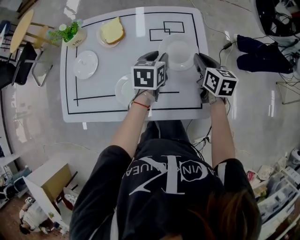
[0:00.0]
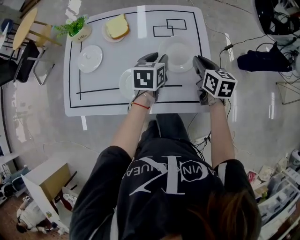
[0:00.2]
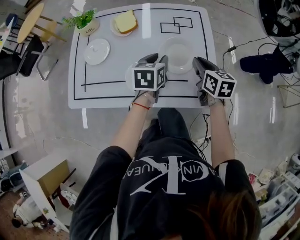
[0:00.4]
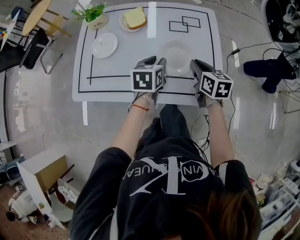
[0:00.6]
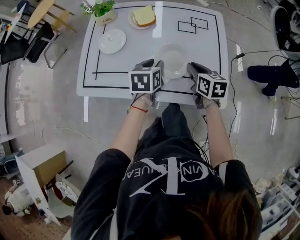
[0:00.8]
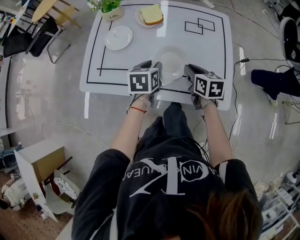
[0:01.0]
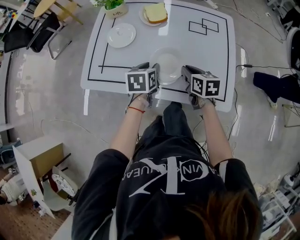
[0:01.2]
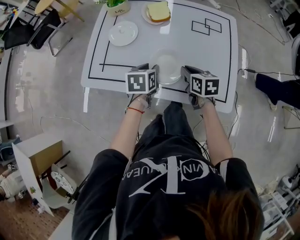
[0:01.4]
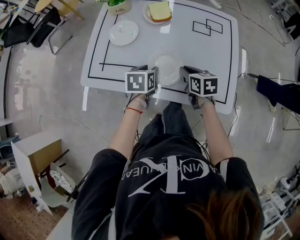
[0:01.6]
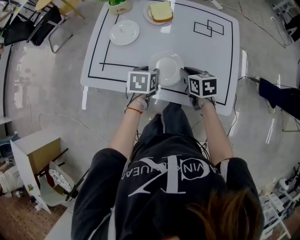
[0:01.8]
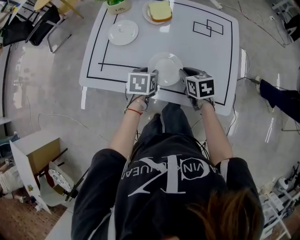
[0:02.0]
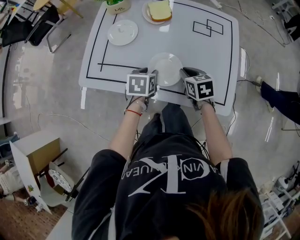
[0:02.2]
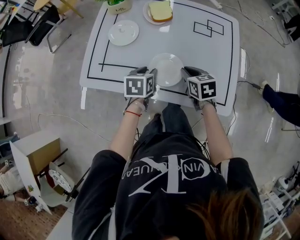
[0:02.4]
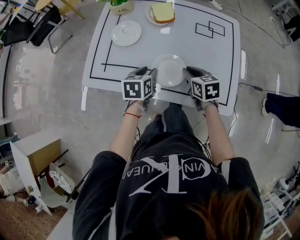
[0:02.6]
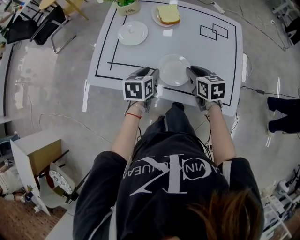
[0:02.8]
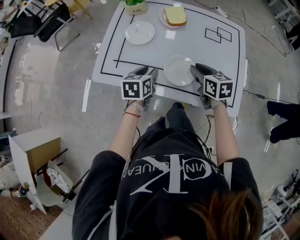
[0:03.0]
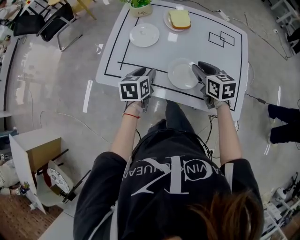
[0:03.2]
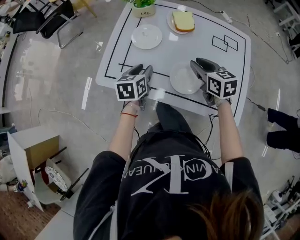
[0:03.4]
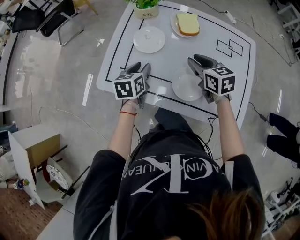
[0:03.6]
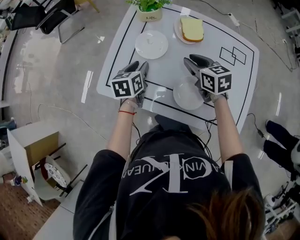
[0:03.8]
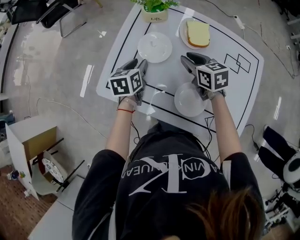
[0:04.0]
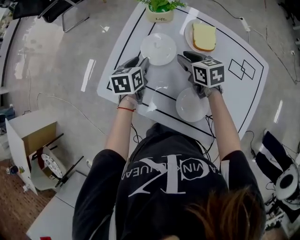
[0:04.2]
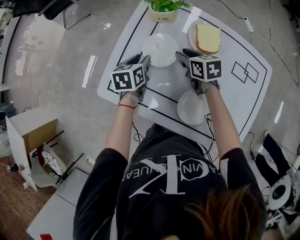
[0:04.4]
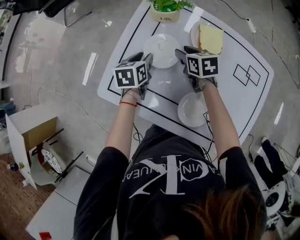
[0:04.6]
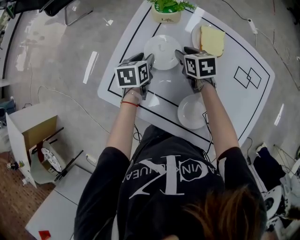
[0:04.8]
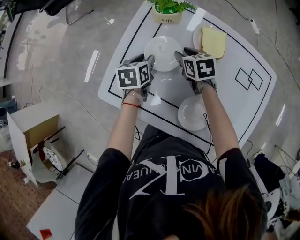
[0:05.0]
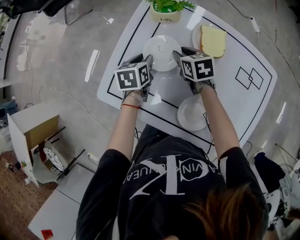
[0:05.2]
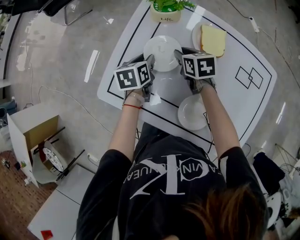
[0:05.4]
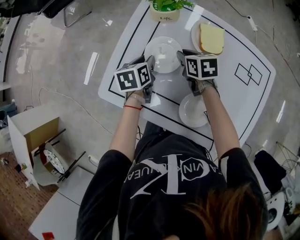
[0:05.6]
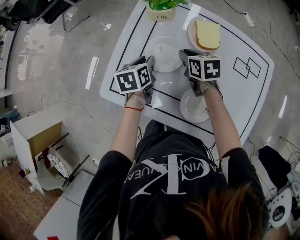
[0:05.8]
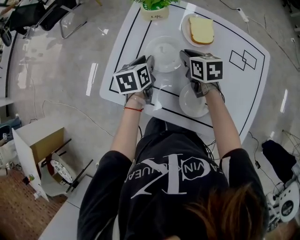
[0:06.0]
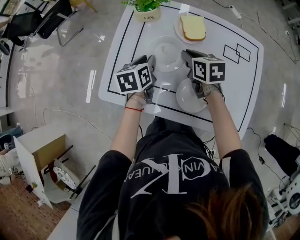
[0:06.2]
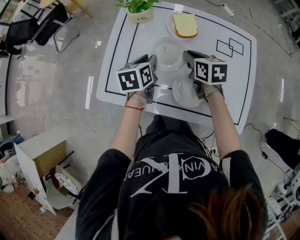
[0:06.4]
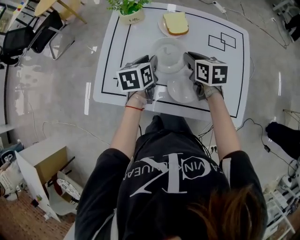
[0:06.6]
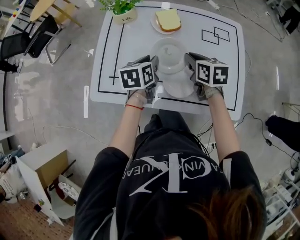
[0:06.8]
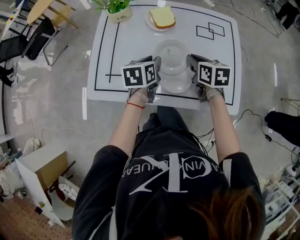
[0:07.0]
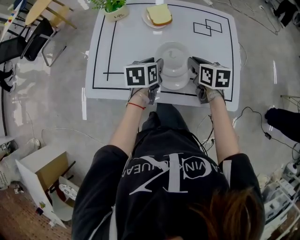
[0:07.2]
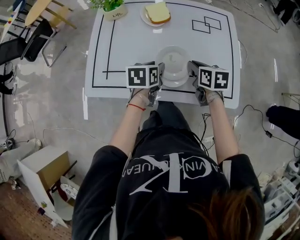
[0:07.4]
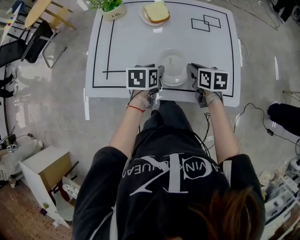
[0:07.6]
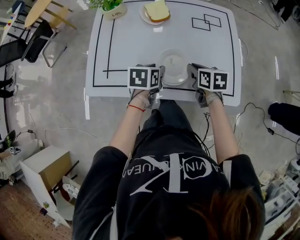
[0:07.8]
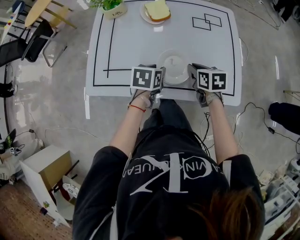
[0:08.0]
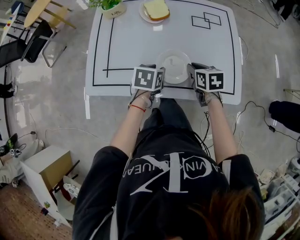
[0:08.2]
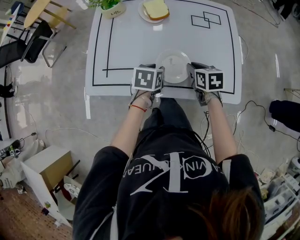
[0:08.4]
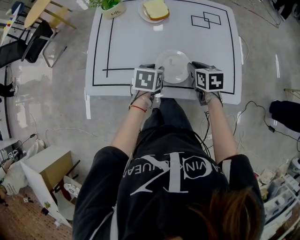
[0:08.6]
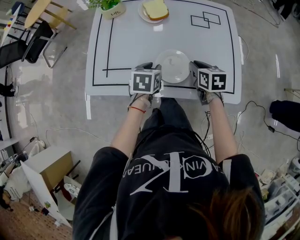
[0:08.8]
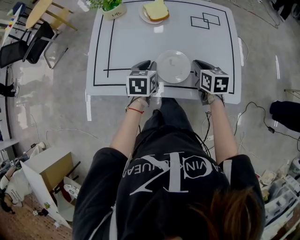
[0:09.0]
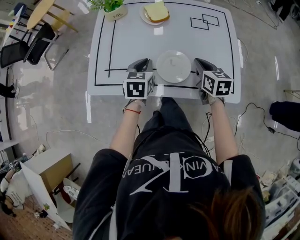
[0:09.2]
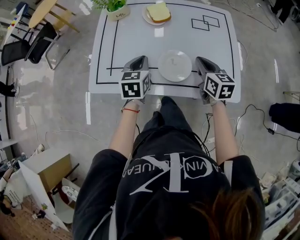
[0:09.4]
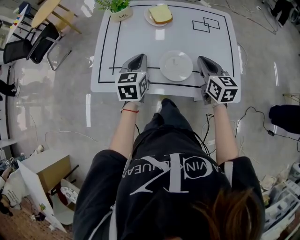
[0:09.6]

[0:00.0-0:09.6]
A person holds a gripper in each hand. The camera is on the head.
0:00.0 to 0:01.6: The grippers both shift to the left and backward by about 25 cm. The right gripper turns by approximately 30 degrees.
0:01.6 to 0:03.2: The right gripper is displaced upward by about 10 cm, while the left gripper moves to the left, about 10 cm.
0:03.2 to 0:04.8: The right gripper heads forward and to the left, covering roughly 30 cm. The left gripper shifts about 20 cm forward.
0:04.8 to 0:06.4: The left gripper shifts roughly 15 cm upward, backward and to the right. The right gripper goes some 15 cm backward, upward and to the right, and closes up.
0:06.4 to 0:08.0: The left gripper travels to the right, backward and downward by some 20 cm, and rotates approximately 30 degrees; the right gripper heads backward, to the right and downward, covering roughly 20 cm.
0:08.0 to 0:09.6: The right gripper moves upward, roughly 10 cm, and changes its angle by some 30 degrees; the left gripper moves upward and to the left, some 10 cm, turns by about 30 degrees, and closes.

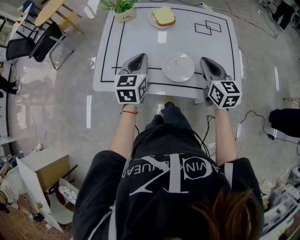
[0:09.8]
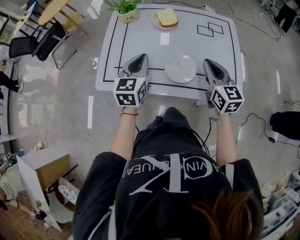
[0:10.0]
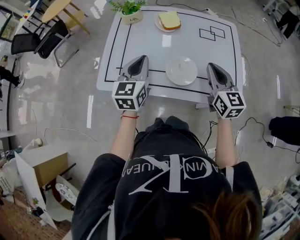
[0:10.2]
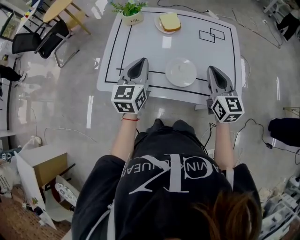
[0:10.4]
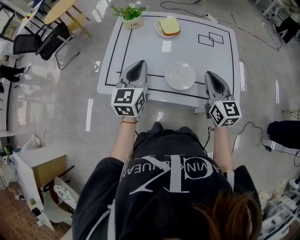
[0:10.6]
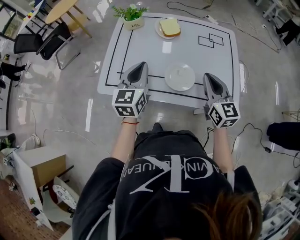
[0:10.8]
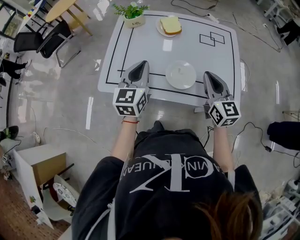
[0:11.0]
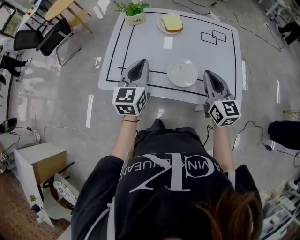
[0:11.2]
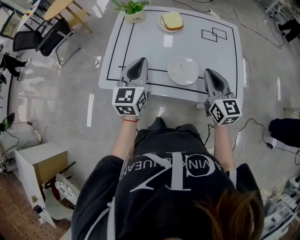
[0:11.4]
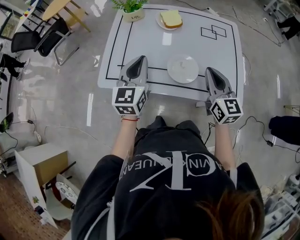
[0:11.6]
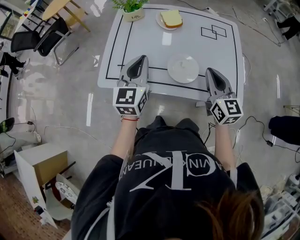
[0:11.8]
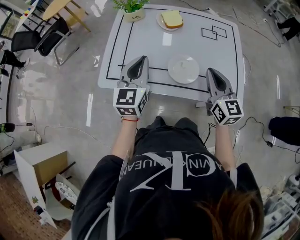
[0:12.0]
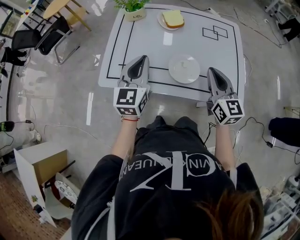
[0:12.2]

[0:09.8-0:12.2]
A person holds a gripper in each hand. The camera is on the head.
0:09.8 to 0:11.0: The left gripper shifts about 5 cm upward.
0:11.0 to 0:12.2: The grippers make only small movements.

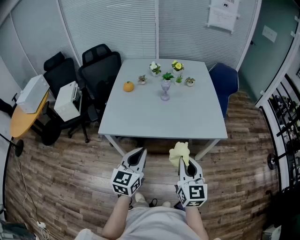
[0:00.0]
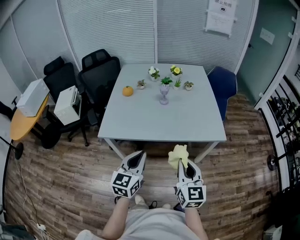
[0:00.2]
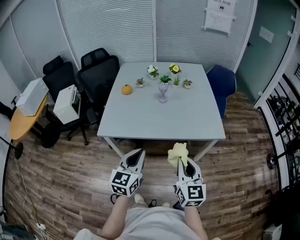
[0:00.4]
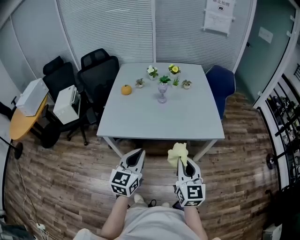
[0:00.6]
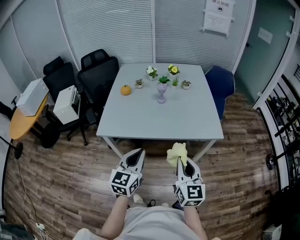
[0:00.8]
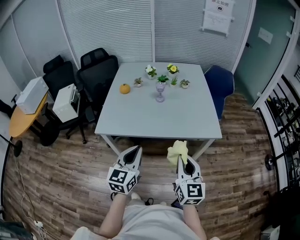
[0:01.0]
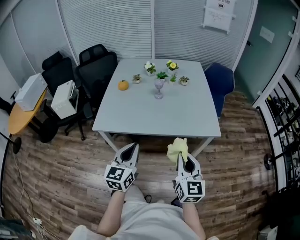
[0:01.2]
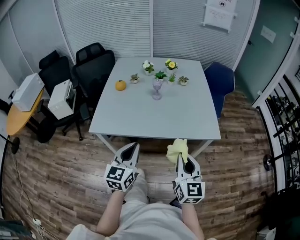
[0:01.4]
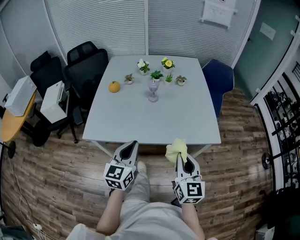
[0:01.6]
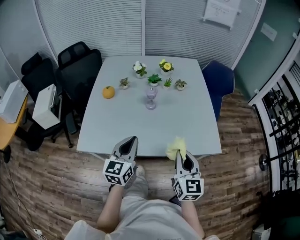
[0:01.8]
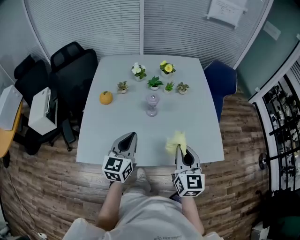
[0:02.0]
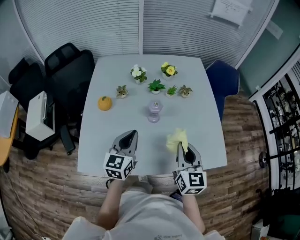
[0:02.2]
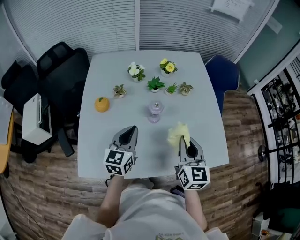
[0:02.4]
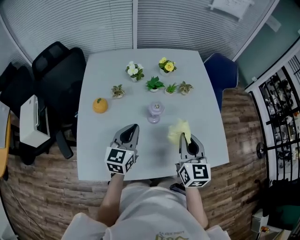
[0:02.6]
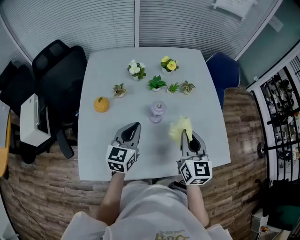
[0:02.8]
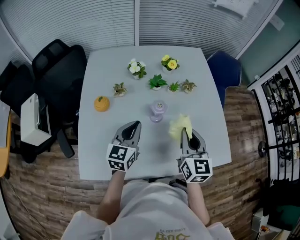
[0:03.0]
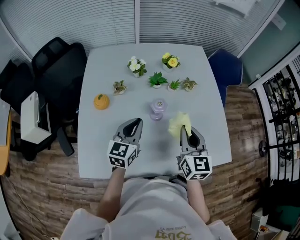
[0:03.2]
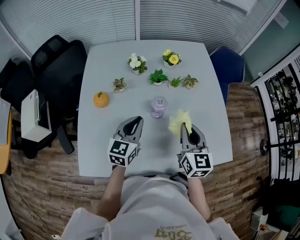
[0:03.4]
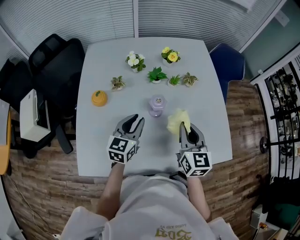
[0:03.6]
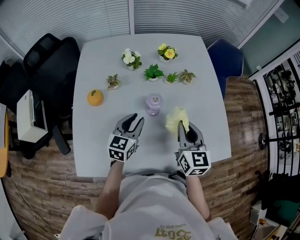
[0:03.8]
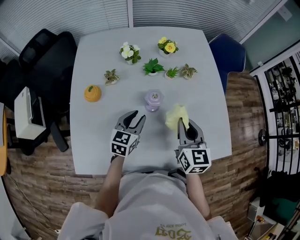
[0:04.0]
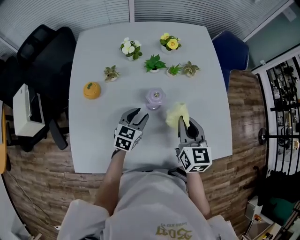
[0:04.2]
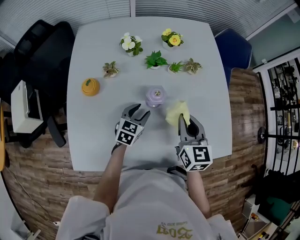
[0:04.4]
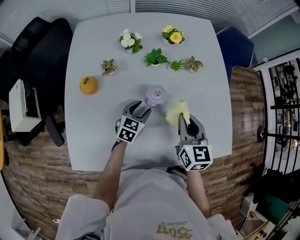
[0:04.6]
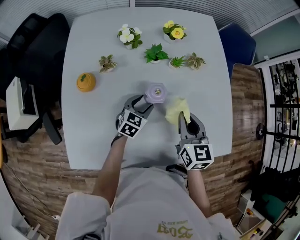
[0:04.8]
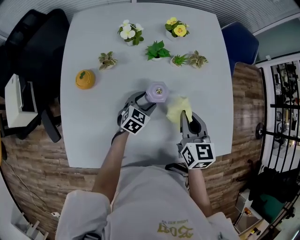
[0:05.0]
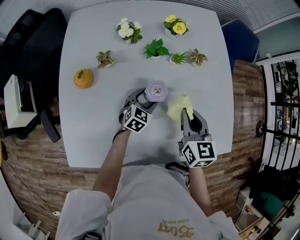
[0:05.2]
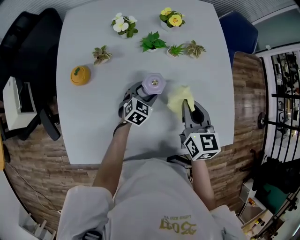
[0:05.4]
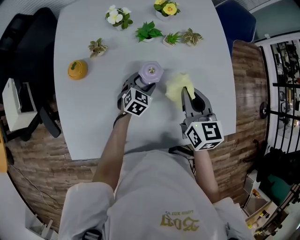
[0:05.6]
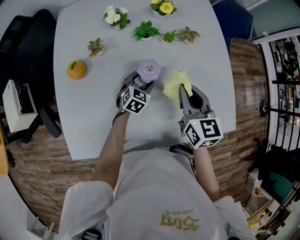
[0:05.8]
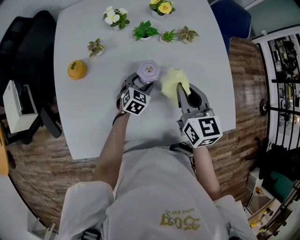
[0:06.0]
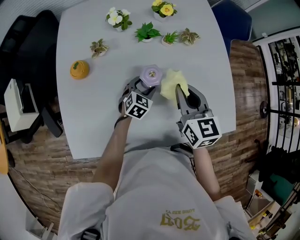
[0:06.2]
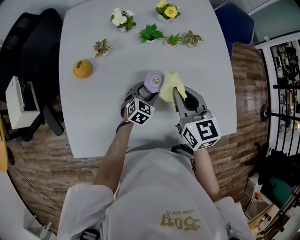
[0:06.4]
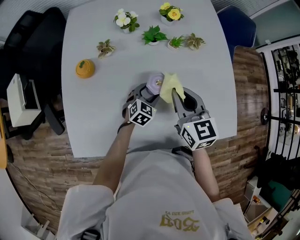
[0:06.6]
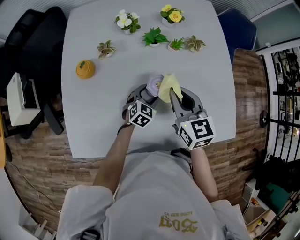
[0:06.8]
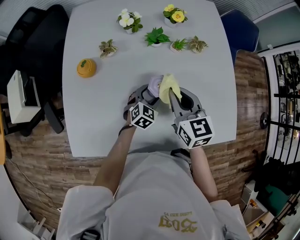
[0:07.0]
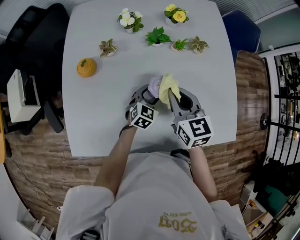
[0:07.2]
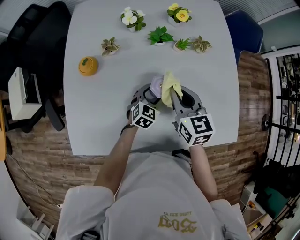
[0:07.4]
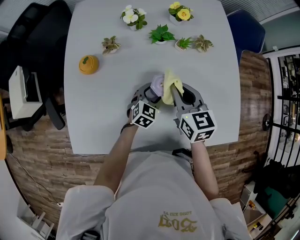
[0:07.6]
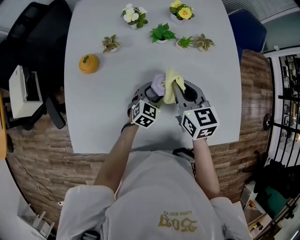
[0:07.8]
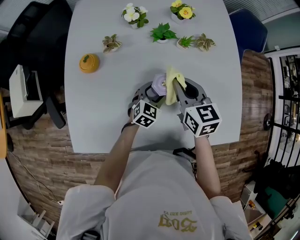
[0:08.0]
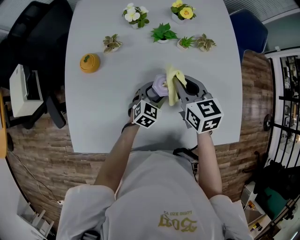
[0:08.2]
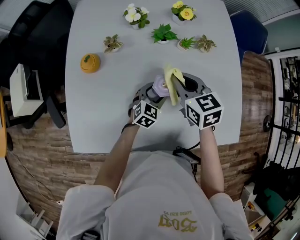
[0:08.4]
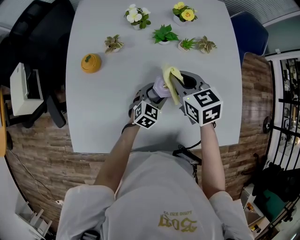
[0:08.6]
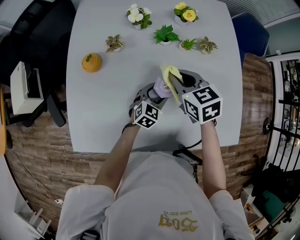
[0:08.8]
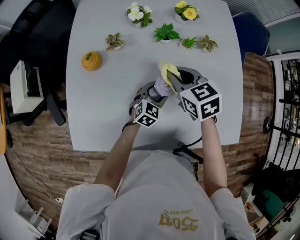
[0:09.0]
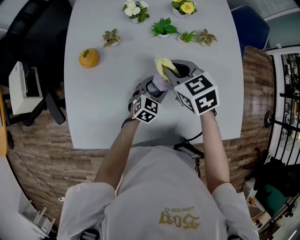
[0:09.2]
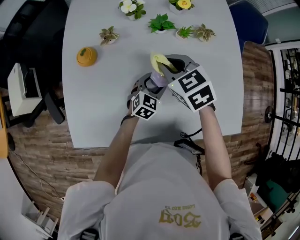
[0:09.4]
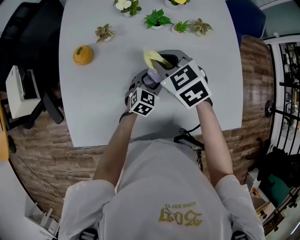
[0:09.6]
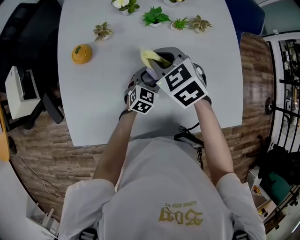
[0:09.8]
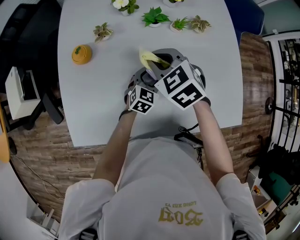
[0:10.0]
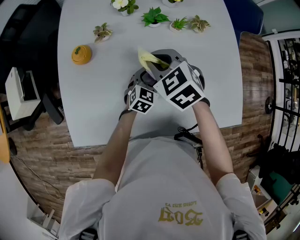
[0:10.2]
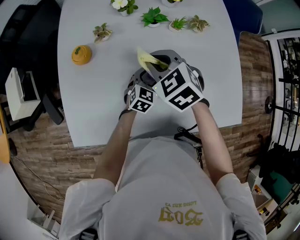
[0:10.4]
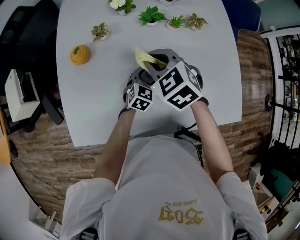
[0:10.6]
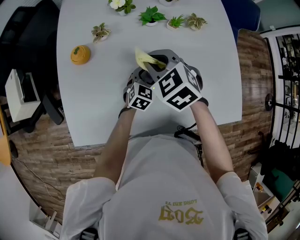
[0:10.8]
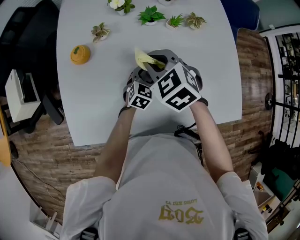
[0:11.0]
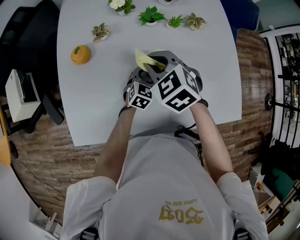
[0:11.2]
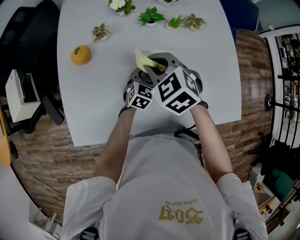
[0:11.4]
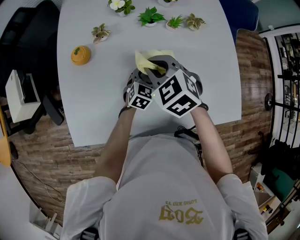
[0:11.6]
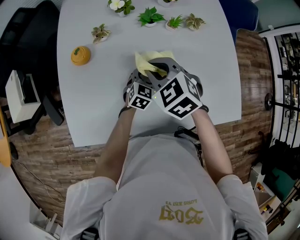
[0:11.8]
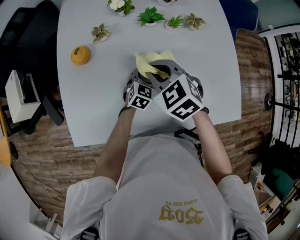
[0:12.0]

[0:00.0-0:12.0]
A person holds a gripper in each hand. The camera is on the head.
0:00.0 to 0:01.6: The left gripper goes roughly 10 cm forward; the right gripper heads forward and to the right, covering roughly 10 cm.
0:01.6 to 0:03.0: The two grippers go about 35 cm forward.
0:03.0 to 0:04.4: The left gripper heads downward, covering about 20 cm, swivels about 20 degrees, and opens up, while the right gripper goes approximately 10 cm downward and forward.
0:04.4 to 0:06.0: The left gripper heads downward, covering roughly 5 cm, and opens its fingers.
0:06.0 to 0:07.6: The right gripper heads to the left, covering roughly 5 cm.
0:07.6 to 0:09.0: The right gripper shifts by approximately 5 cm, and rotates some 20 degrees.
0:09.0 to 0:10.4: The right gripper ends up approximately 5 cm from where it was, and changes its angle by some 20 degrees.
0:10.4 to 0:12.0: The grippers make only small movements.
